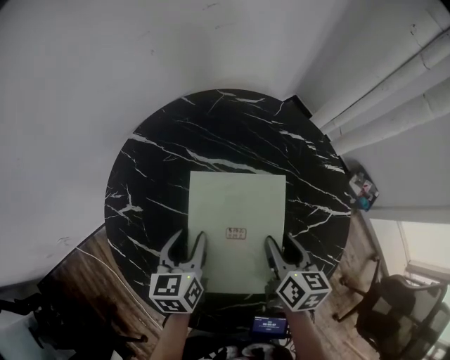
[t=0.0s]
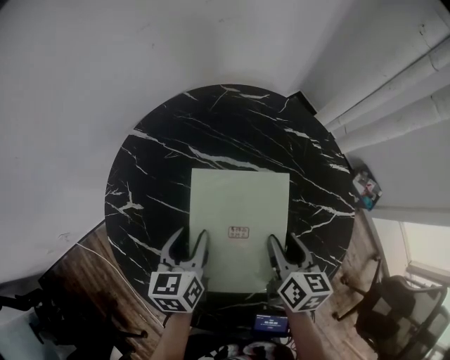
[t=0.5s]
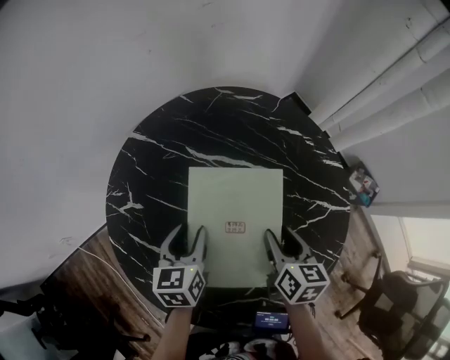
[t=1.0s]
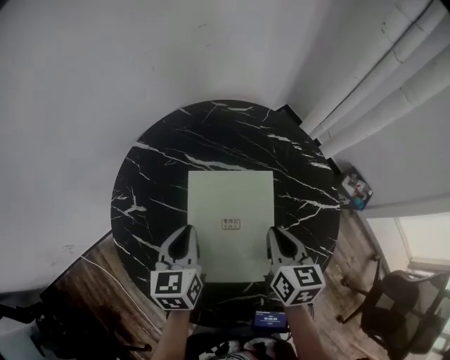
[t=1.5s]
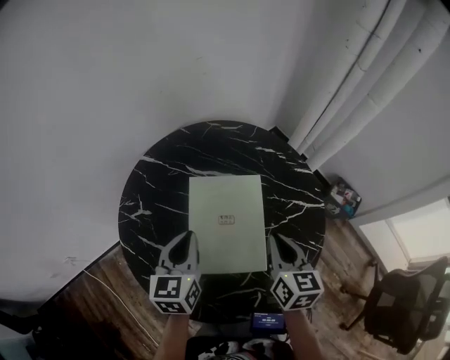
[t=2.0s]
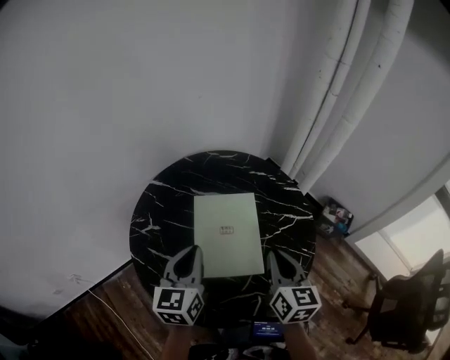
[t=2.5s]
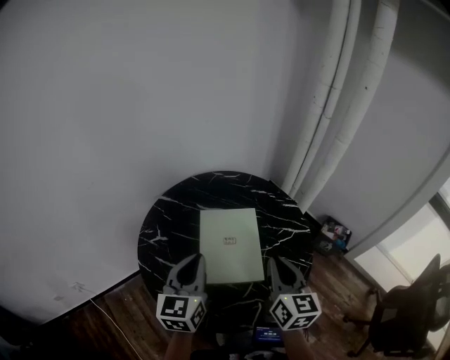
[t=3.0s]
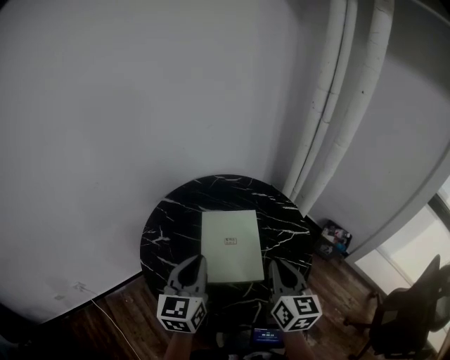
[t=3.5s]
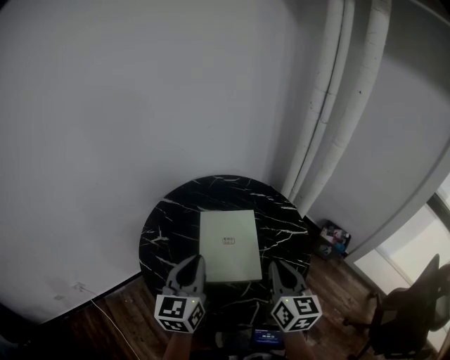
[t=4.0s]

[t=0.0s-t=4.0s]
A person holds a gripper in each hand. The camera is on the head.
t=0.0s to t=2.0s: The right gripper heads upward and backward, covering roughly 15 cm, and closes up. Meanwhile the left gripper goes some 10 cm upward, and closes.
t=2.0s to t=4.0s: The grippers both shift upward and backward by roughly 15 cm.

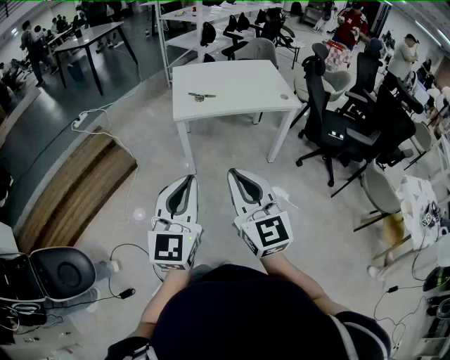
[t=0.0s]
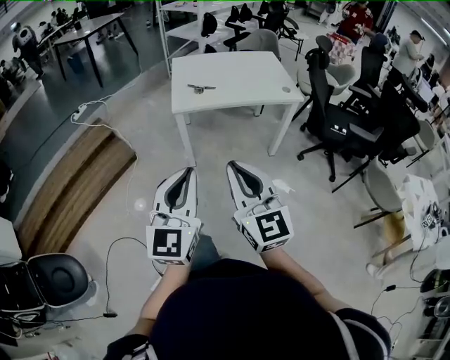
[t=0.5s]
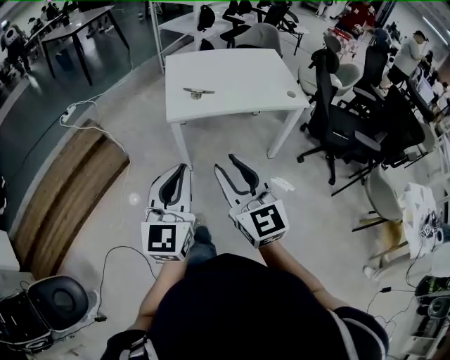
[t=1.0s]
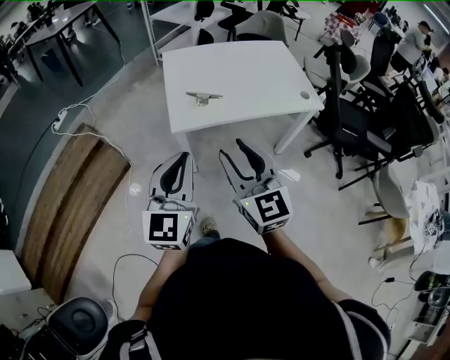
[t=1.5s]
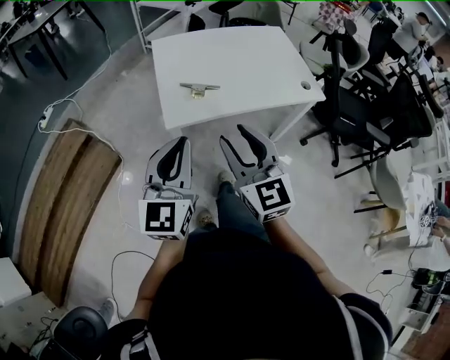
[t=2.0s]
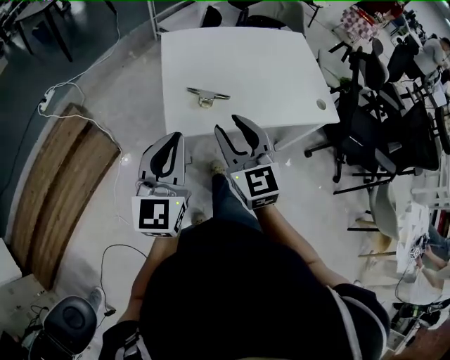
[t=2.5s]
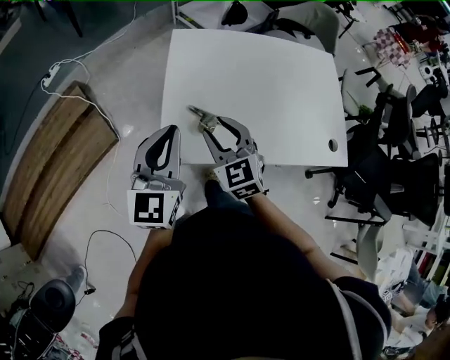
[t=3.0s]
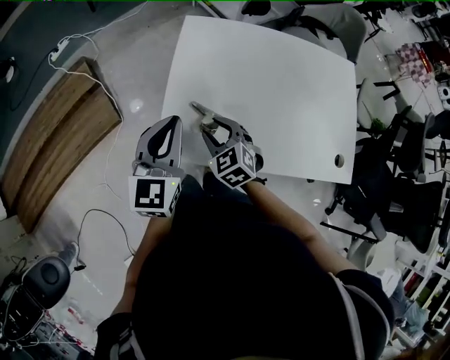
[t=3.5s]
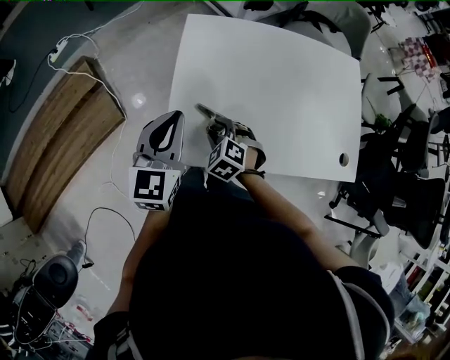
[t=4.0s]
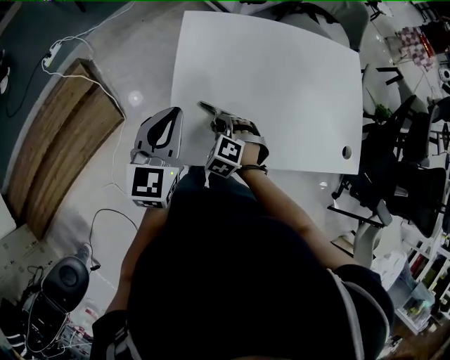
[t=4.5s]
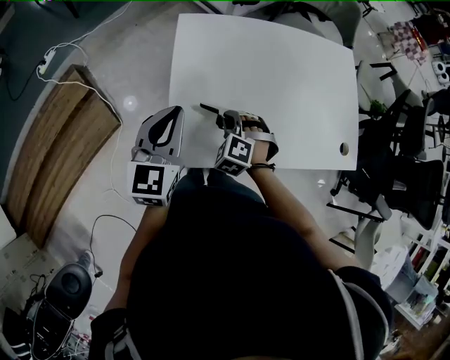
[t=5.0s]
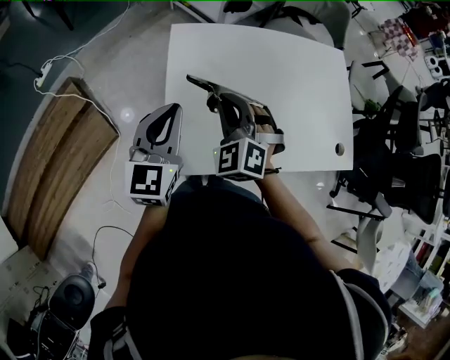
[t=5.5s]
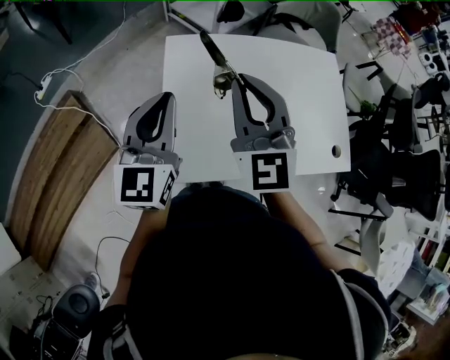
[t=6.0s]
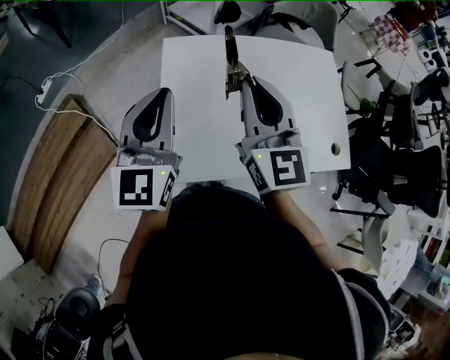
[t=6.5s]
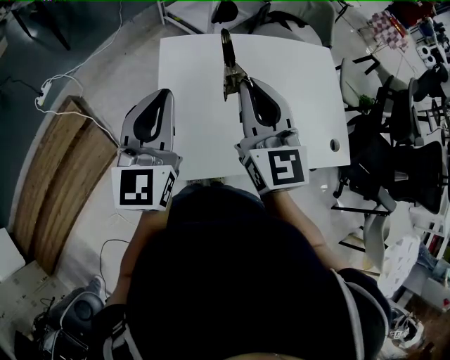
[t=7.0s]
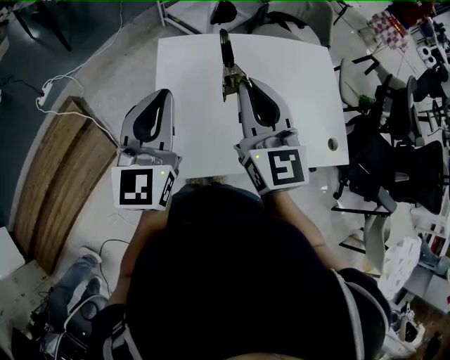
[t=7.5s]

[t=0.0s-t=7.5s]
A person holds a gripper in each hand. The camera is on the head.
t=0.0s to t=2.0s: Both grippers are carried forward, roughly 40 cm. The right gripper opens up.
t=2.0s to t=4.0s: The left gripper heads forward, covering roughly 35 cm, and swivels about 20 degrees. The right gripper goes approximately 50 cm forward and downward, and tilts its fingers about 50 degrees downward.
t=4.0s to t=5.5s: The right gripper shifts about 20 cm upward and forward, changes its angle by about 30 degrees, and closes.
t=5.5s to t=7.5s: The right gripper goes roughly 20 cm upward and to the right, and twists some 50 degrees clockwise, seen from behind. The left gripper is displaced upward by approximately 10 cm.

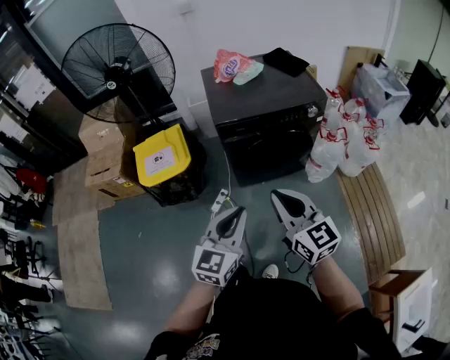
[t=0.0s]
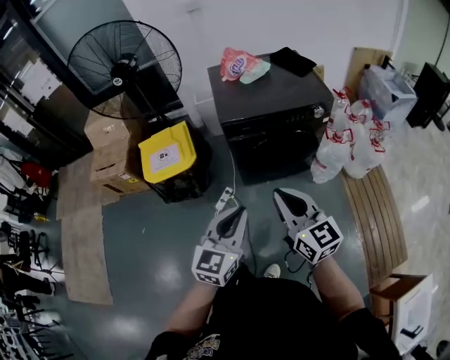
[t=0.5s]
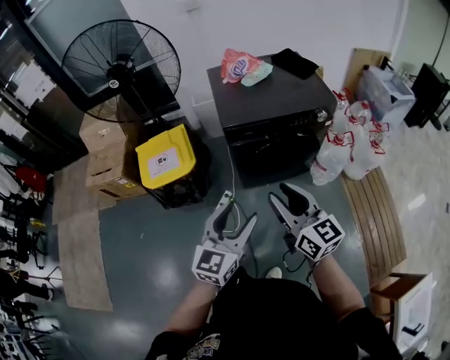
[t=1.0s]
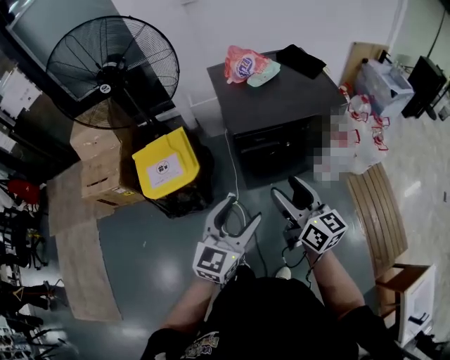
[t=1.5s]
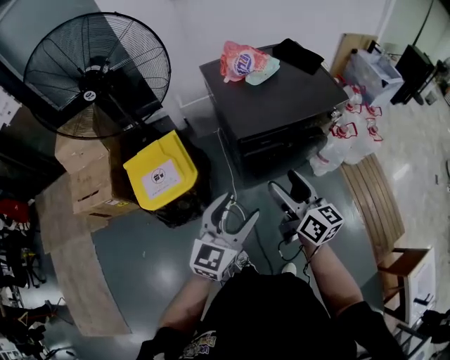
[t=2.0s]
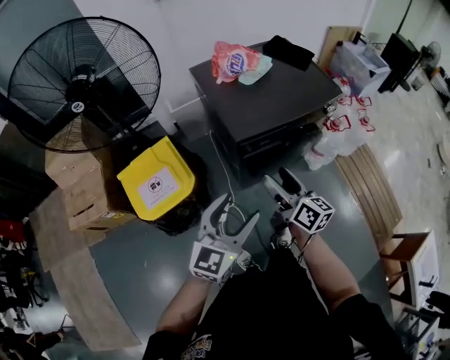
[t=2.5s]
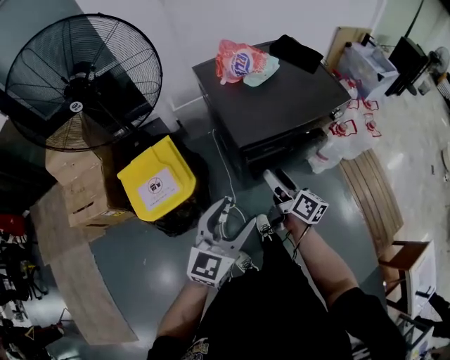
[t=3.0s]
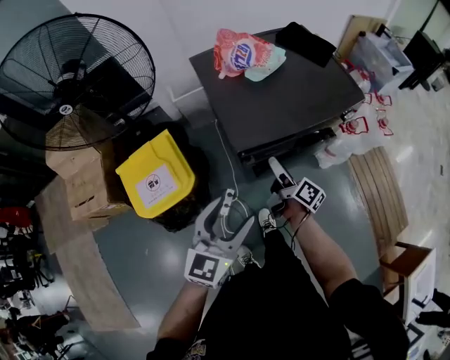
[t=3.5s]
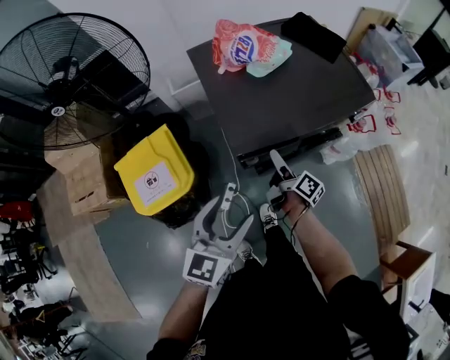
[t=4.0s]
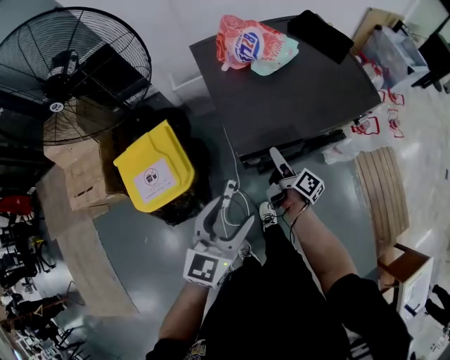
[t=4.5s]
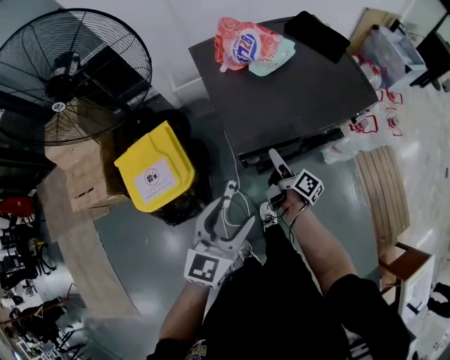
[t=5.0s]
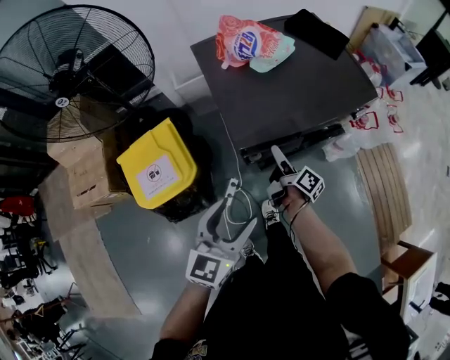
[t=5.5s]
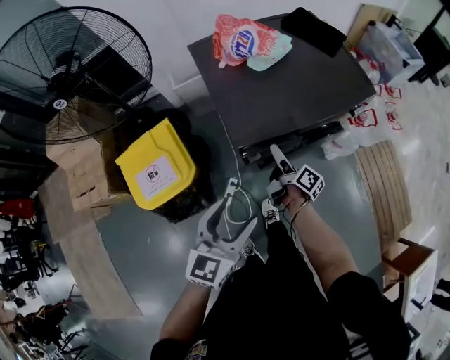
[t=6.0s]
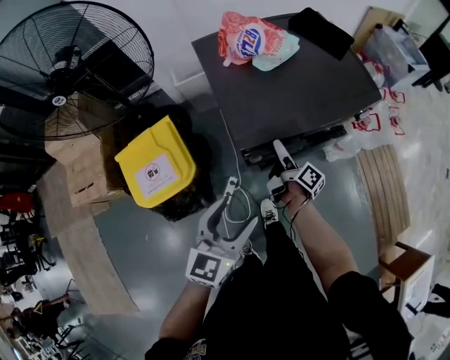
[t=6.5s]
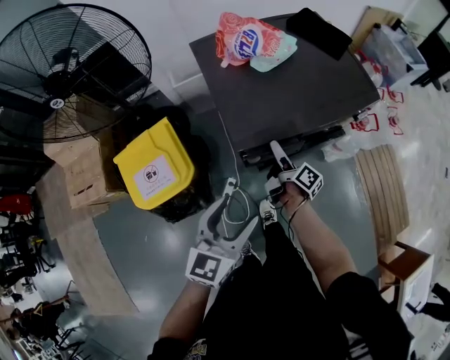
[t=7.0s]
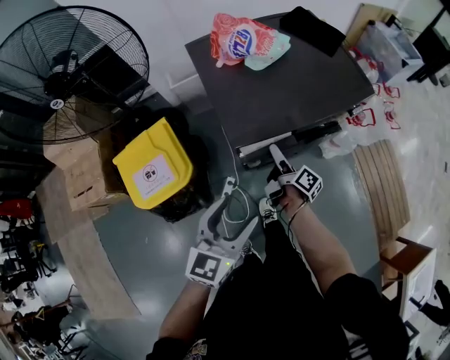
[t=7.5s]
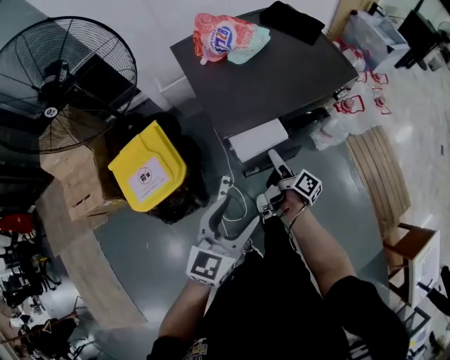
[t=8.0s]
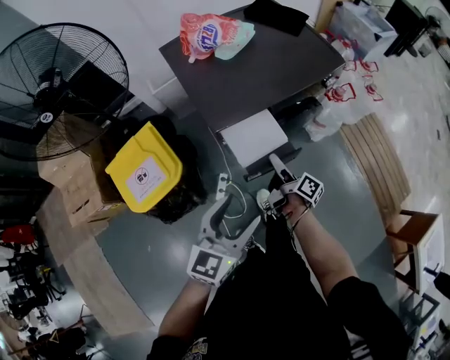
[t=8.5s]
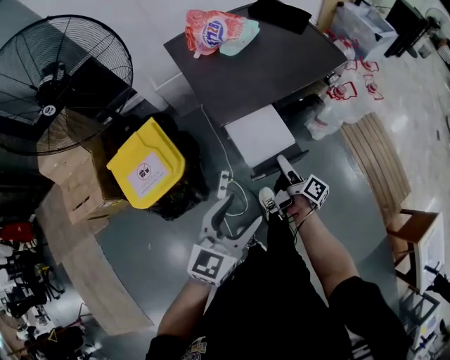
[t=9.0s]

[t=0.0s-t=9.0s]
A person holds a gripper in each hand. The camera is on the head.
t=0.0s to t=2.0s: The grippers both shift forward and to the left by approximately 25 cm. The left gripper opens. Meanwhile the right gripper turns by roughly 30 degrees, and opens.
t=2.0s to t=4.5s: The right gripper shifts roughly 35 cm downward and forward, and twists approximately 50 degrees clockwise, seen from behind. Meanwhile the left gripper moves forward and downward, roughly 15 cm.
t=4.5s to t=7.0s: The grippers move only a little.
t=7.0s to t=9.0s: The left gripper moves backward, about 10 cm, while the right gripper shifts about 15 cm backward and to the right.

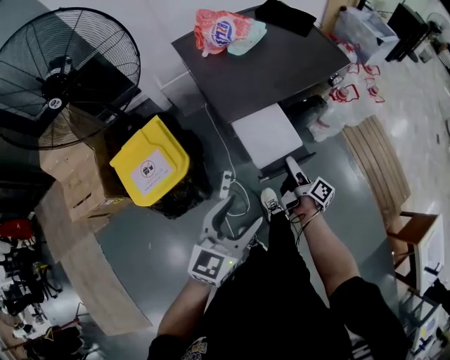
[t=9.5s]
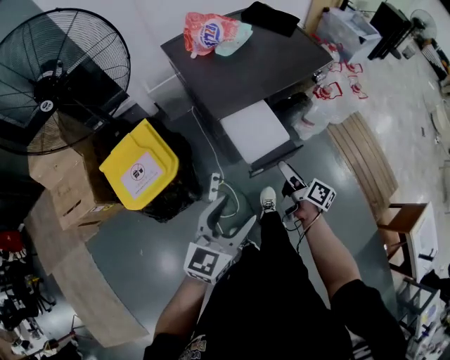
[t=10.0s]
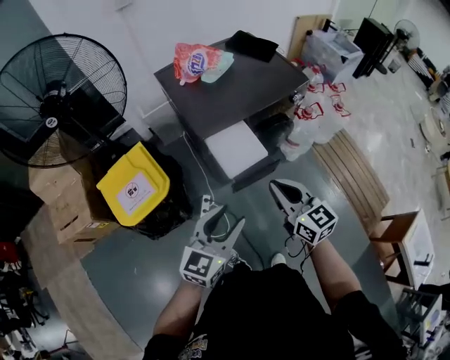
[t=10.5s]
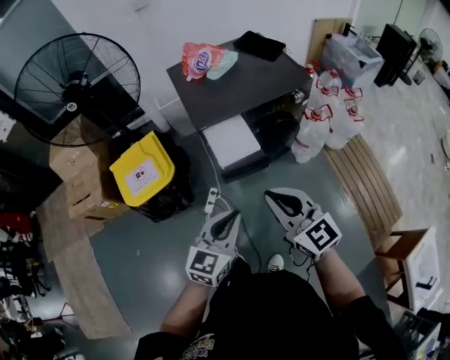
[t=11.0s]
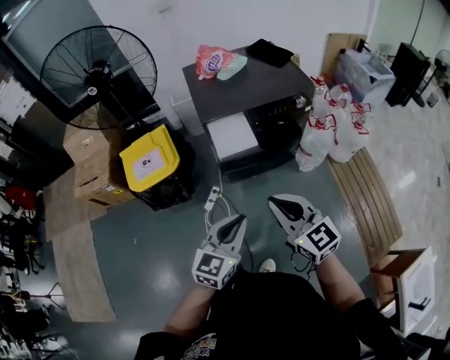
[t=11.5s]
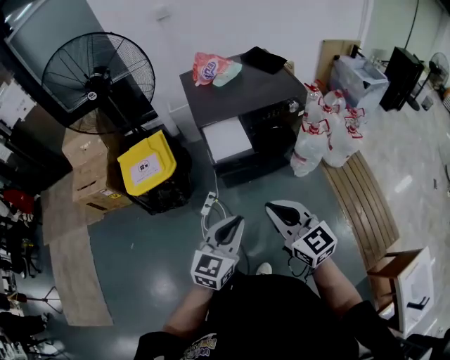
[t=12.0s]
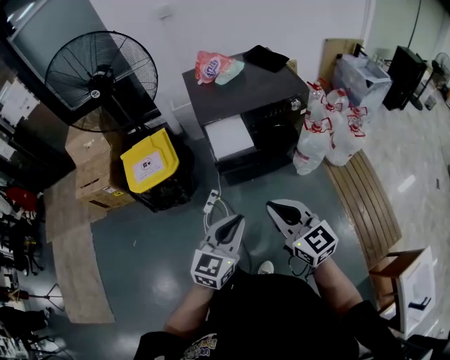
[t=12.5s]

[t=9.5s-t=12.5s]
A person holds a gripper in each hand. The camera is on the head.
t=9.5s to t=11.0s: The left gripper shifts about 15 cm to the right and backward, and closes; the right gripper goes about 35 cm upward and backward, twists roughly 80 degrees counterclockwise, seen from behind, and closes up.
t=11.0s to t=12.5s: Both grippers move backward and to the right, approximately 10 cm.

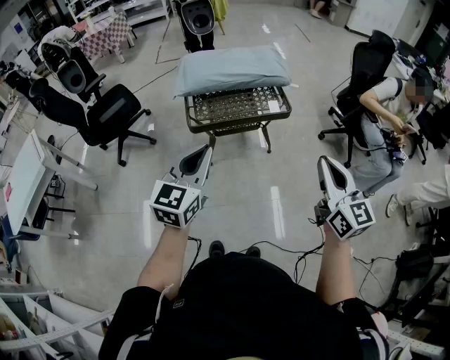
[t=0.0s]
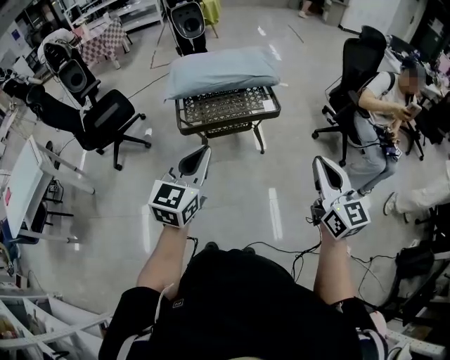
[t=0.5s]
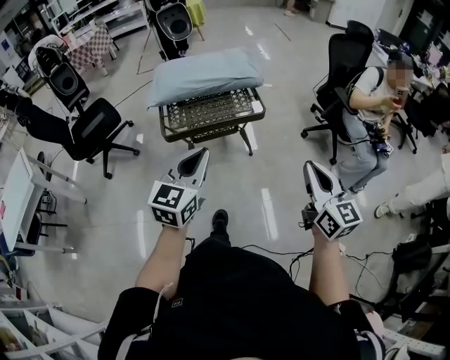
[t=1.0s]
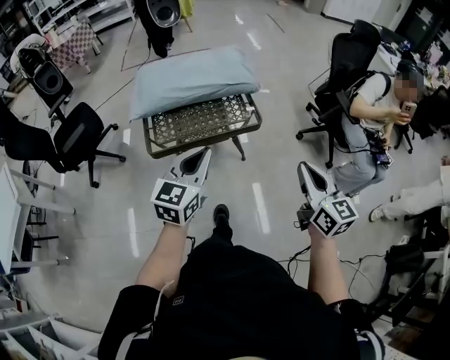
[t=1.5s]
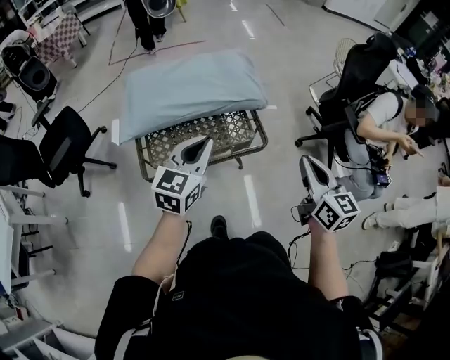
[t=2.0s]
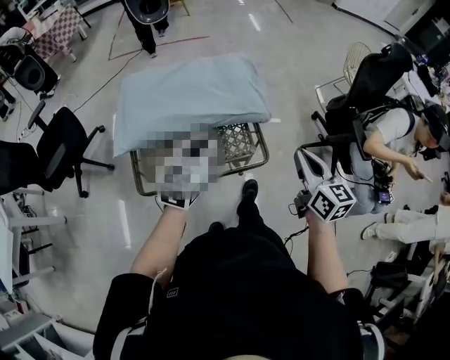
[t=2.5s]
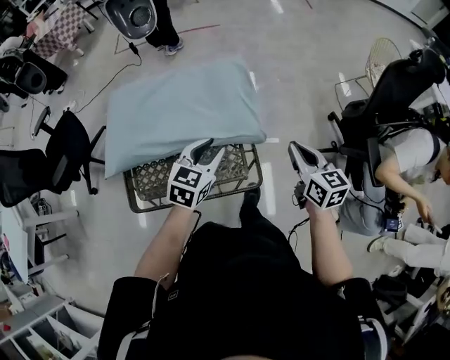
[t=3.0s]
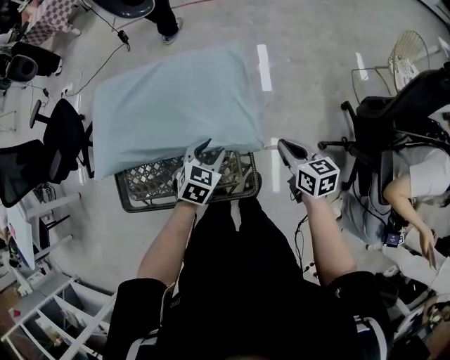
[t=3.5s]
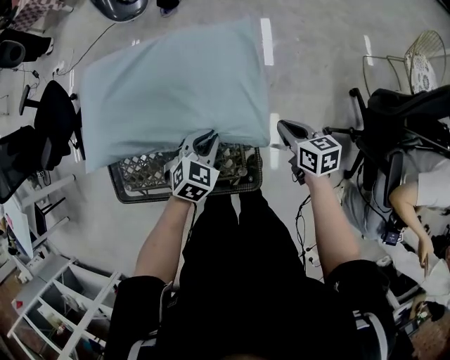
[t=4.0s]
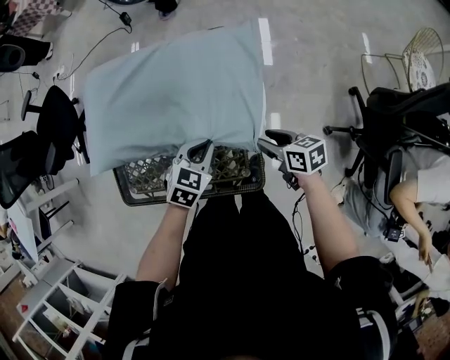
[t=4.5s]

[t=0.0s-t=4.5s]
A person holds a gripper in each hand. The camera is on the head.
t=0.0s to t=2.0s: Both grippers travel together forward, about 35 cm.
t=2.0s to t=4.5s: The right gripper changes place by some 50 cm, rotates roughly 60 degrees, and opens up. The left gripper ends up about 40 cm from where it was, points its fingers roughly 40 degrees further downward, and opens, then closes once more.
